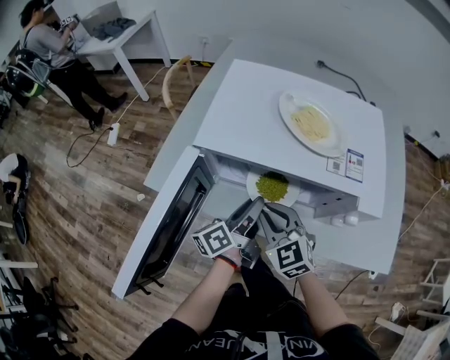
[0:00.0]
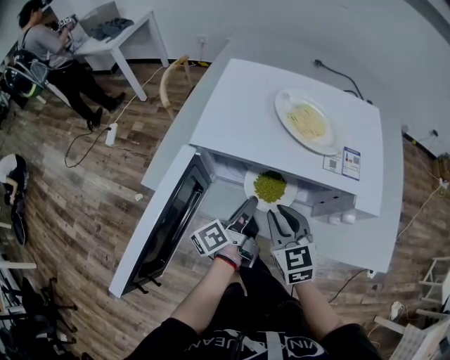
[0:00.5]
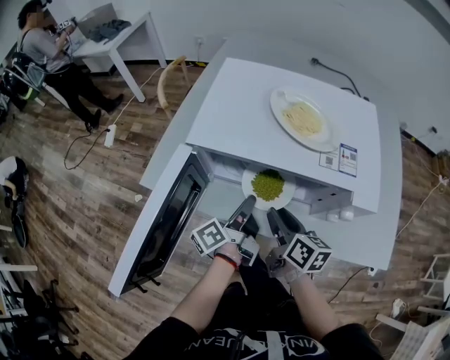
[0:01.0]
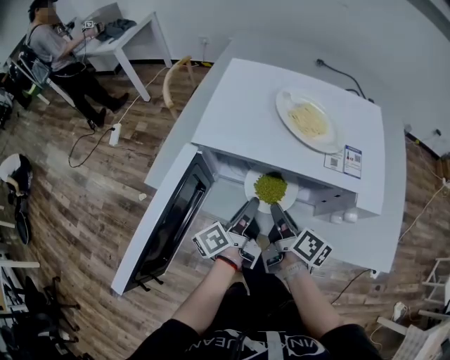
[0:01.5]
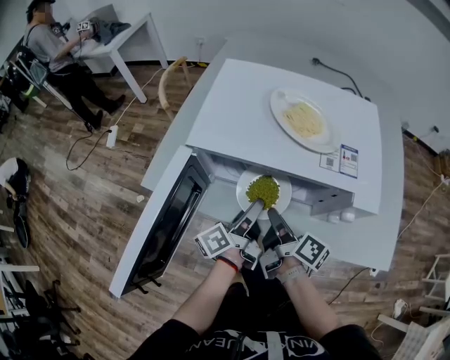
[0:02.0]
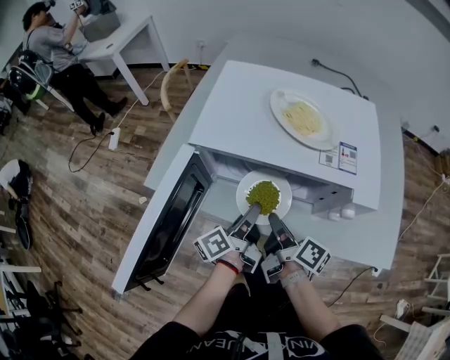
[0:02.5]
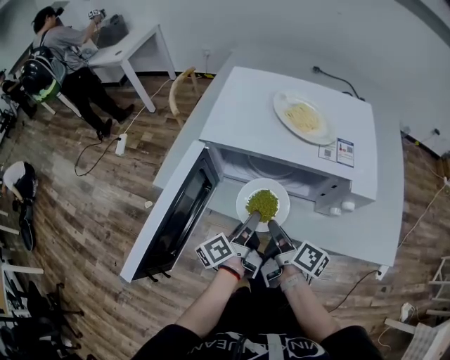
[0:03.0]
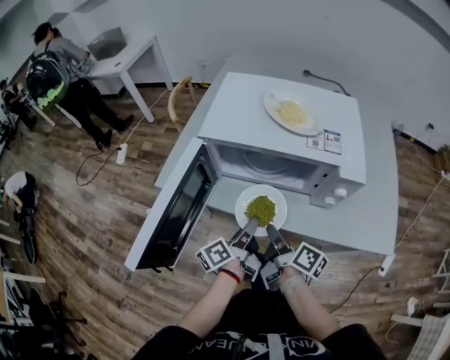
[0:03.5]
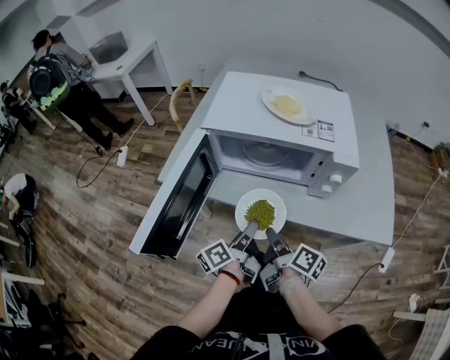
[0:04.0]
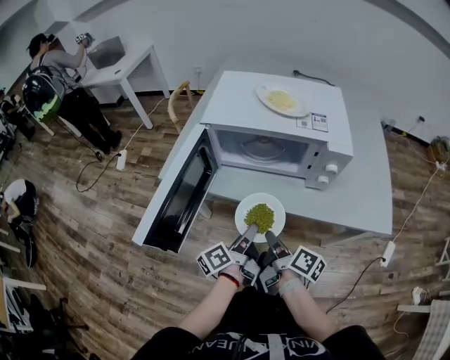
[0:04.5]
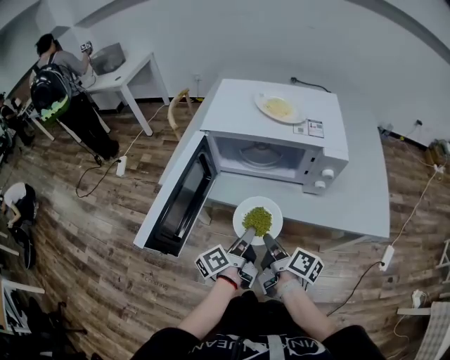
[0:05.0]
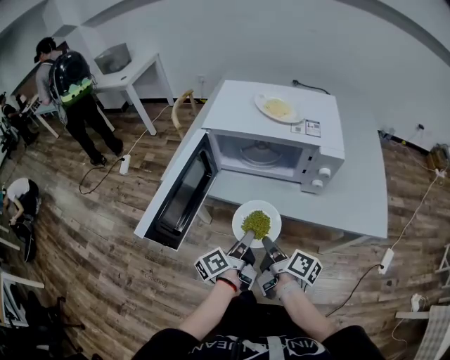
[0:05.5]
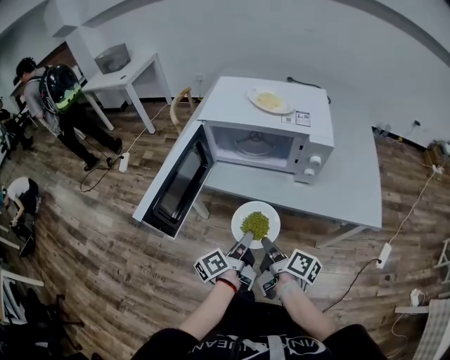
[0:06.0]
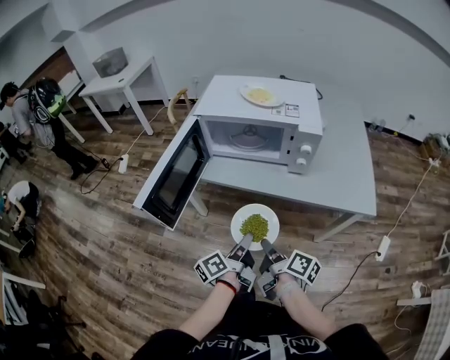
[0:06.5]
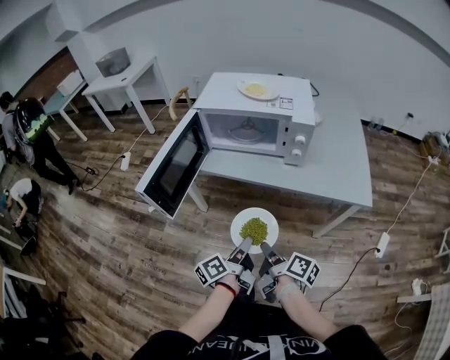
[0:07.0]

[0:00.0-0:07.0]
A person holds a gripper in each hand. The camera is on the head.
0.0 to 2.0 s: The right gripper moves to the right, approximately 5 cm, and rolls clockwise, seen from behind, by some 90 degrees, while the left gripper closes, then reopens.
2.0 to 3.5 s: The two grippers go roughly 10 cm backward. The left gripper closes.
3.5 to 5.0 s: Both grippers move backward, about 10 cm.
5.0 to 7.0 s: The grippers both shift backward by some 15 cm.

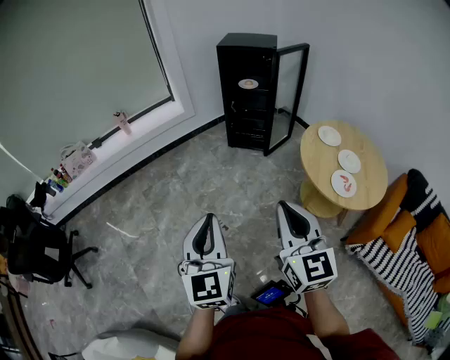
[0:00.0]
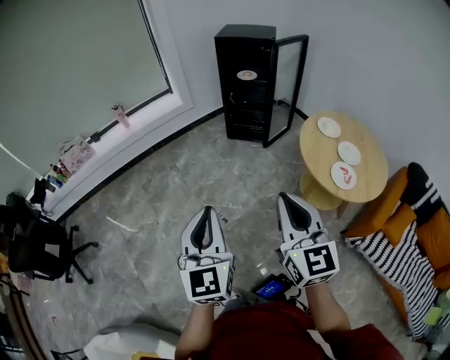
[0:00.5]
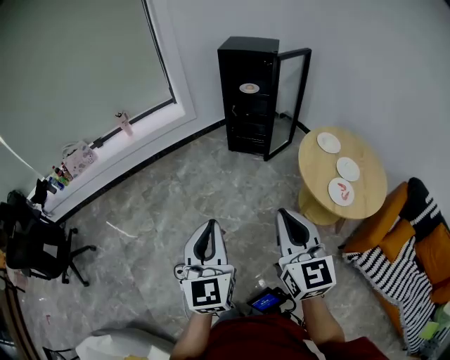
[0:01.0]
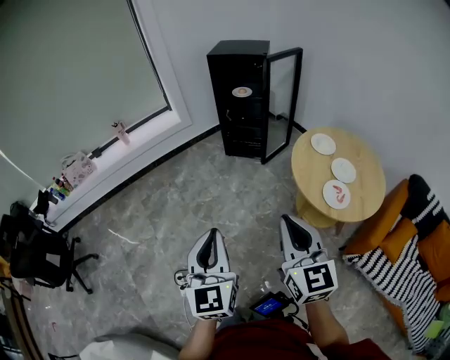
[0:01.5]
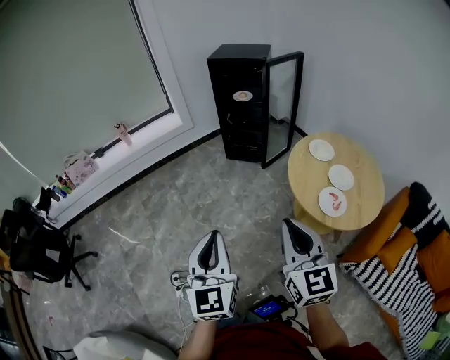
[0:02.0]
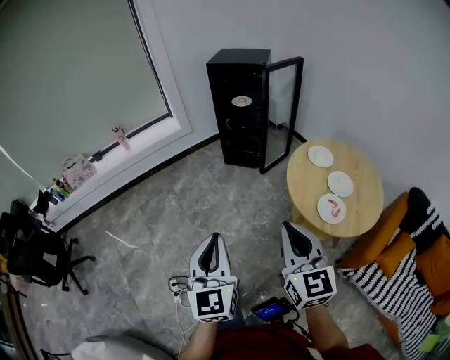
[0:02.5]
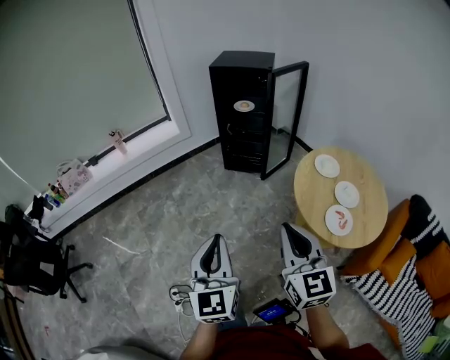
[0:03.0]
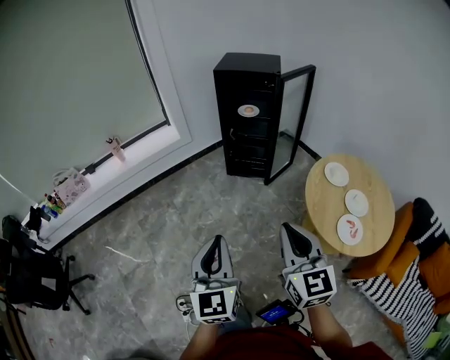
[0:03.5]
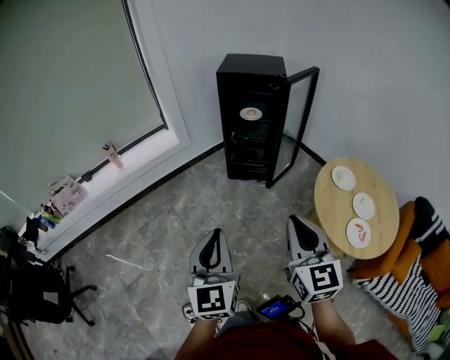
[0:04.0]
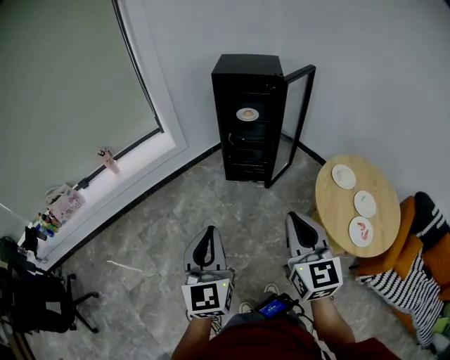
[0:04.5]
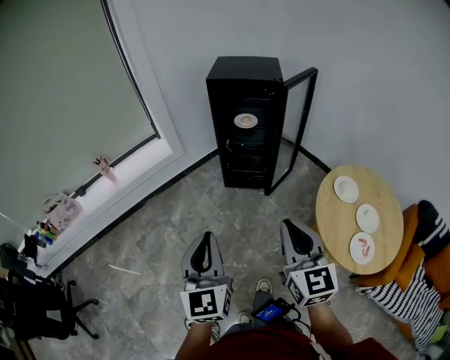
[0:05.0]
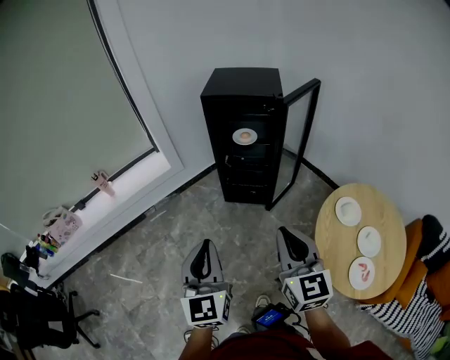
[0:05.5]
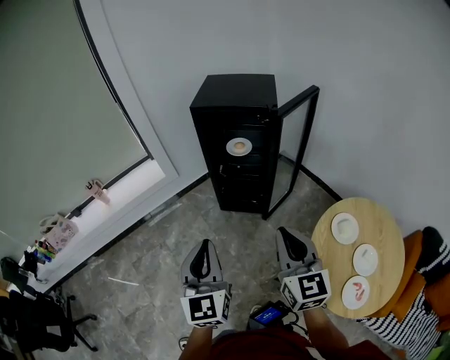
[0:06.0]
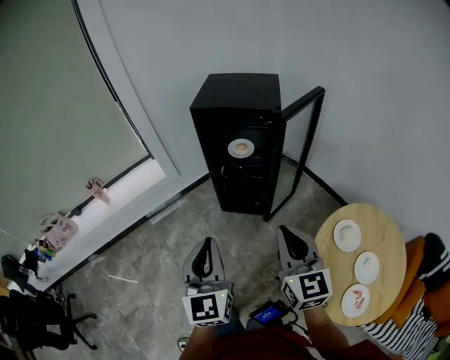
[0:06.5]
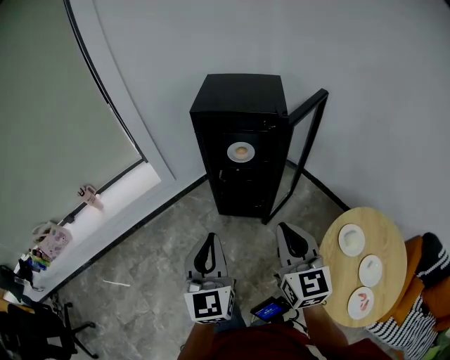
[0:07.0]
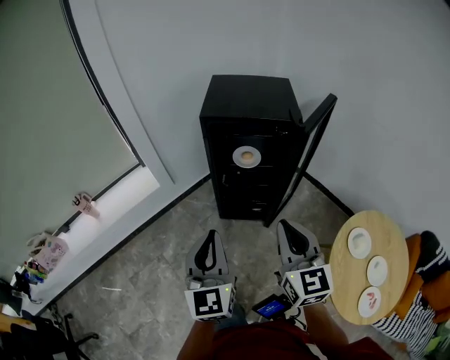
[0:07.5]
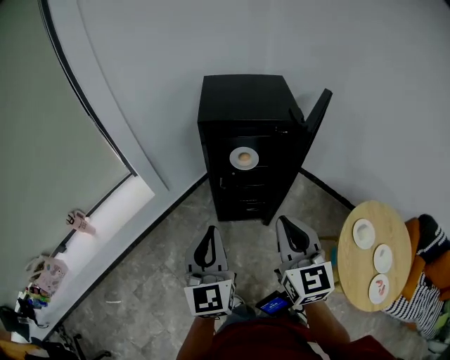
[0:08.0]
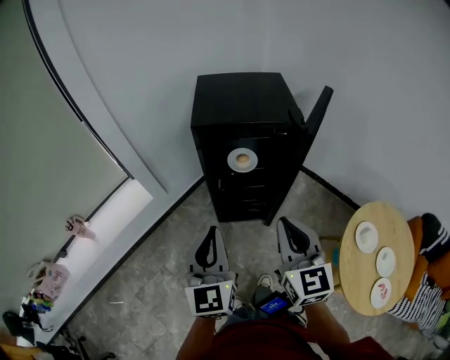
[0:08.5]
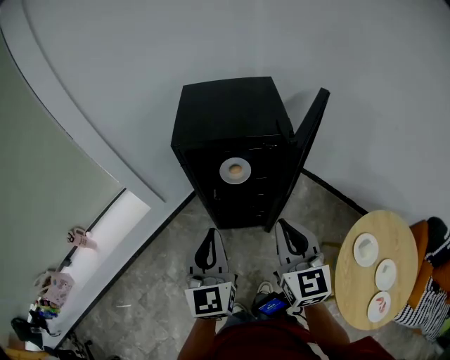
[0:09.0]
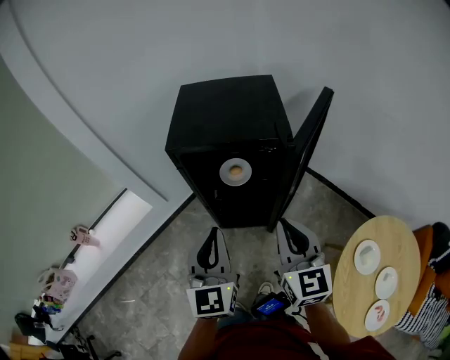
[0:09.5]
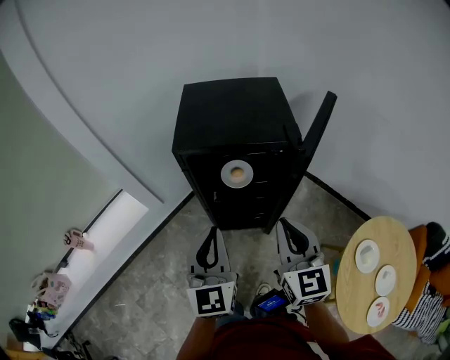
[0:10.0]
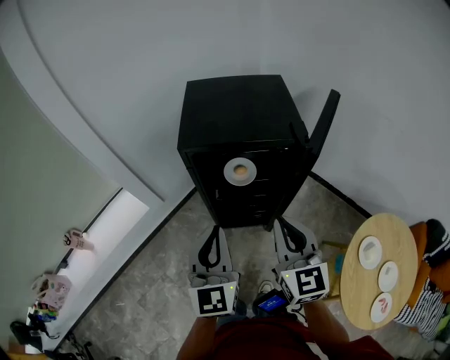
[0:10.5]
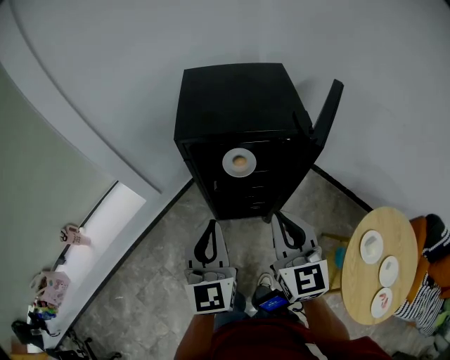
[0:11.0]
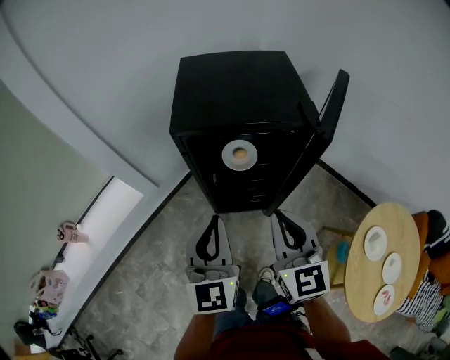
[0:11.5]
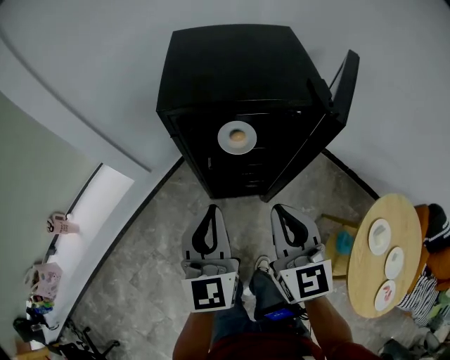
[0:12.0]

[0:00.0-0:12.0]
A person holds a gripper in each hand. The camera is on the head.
0.0 to 2.0 s: Both grippers travel together to the right, roughly 15 cm.
2.0 to 4.0 s: The grippers both shift forward and to the left by approximately 25 cm.
4.0 to 6.0 s: The two grippers go approximately 25 cm forward.
6.0 to 8.0 s: The grippers both shift forward and to the left by about 25 cm.
8.0 to 10.0 s: Both grippers travel together forward and to the right, roughly 15 cm.
10.0 to 12.0 s: The right gripper shifts about 10 cm downward and to the left. The left gripper heads downward, covering roughly 5 cm.

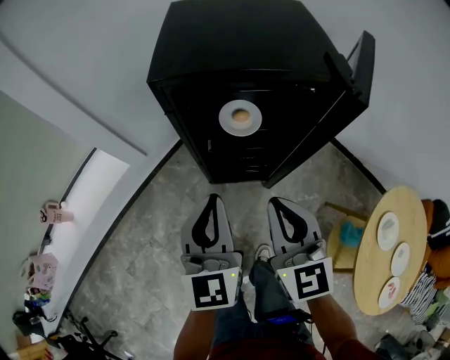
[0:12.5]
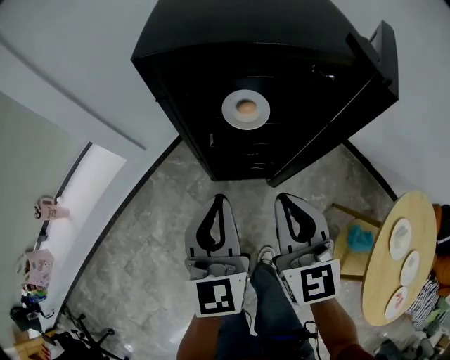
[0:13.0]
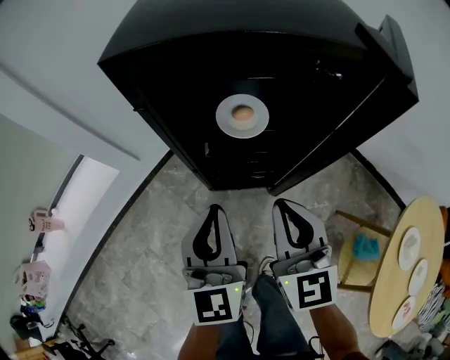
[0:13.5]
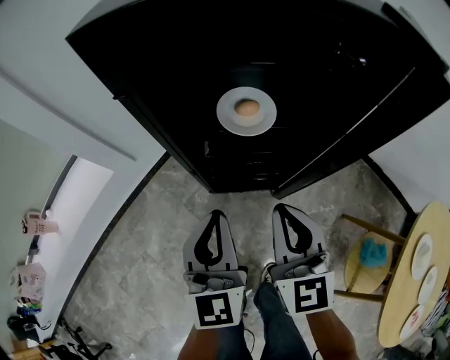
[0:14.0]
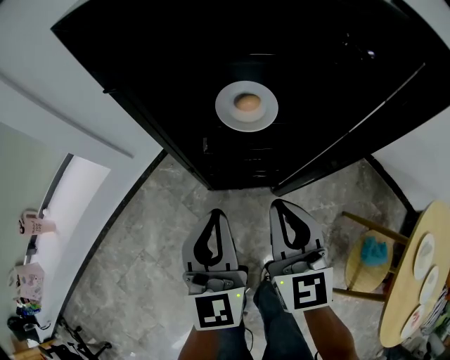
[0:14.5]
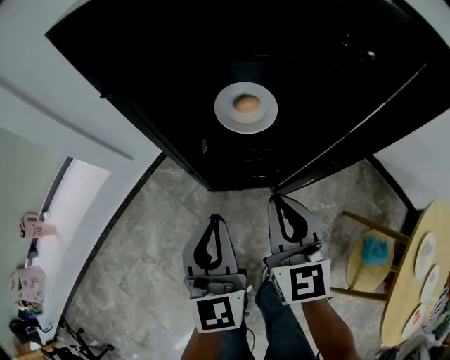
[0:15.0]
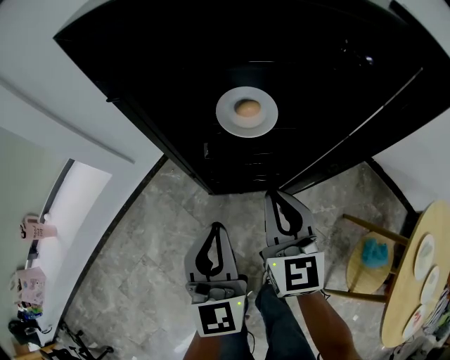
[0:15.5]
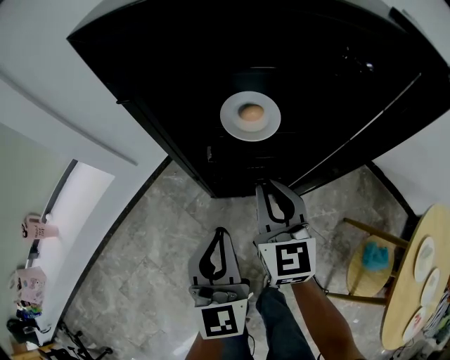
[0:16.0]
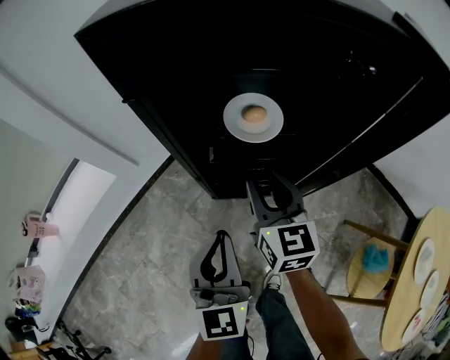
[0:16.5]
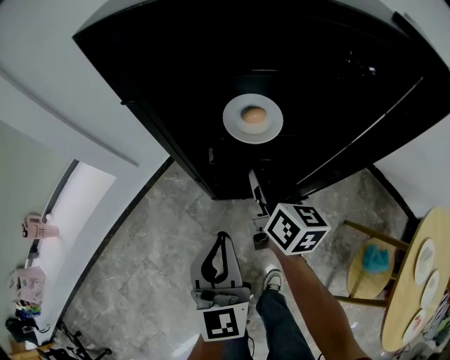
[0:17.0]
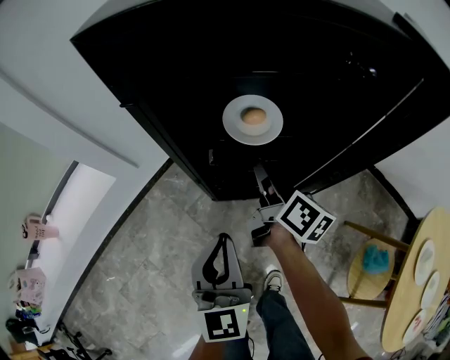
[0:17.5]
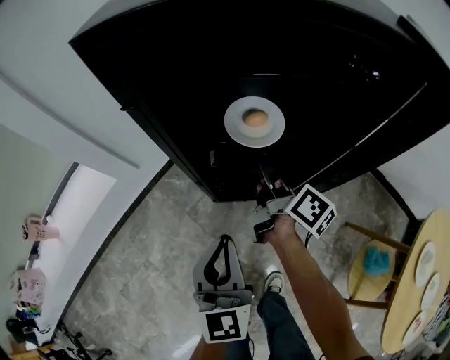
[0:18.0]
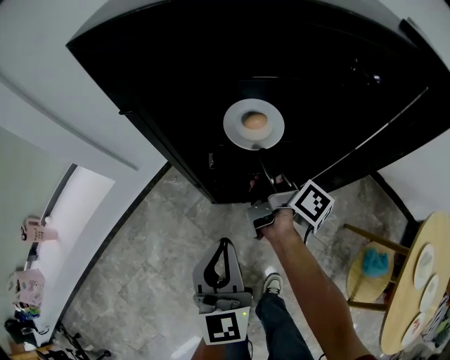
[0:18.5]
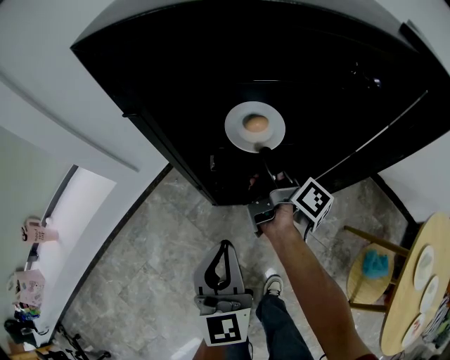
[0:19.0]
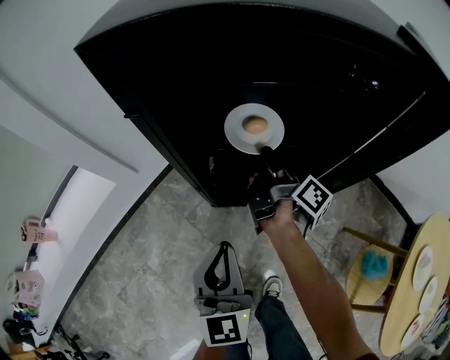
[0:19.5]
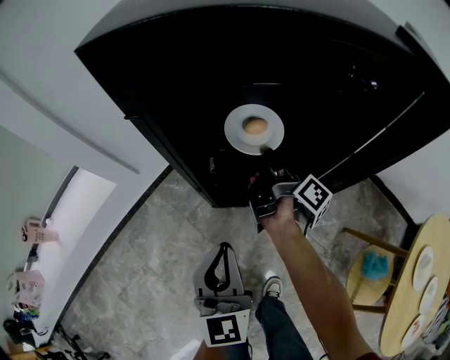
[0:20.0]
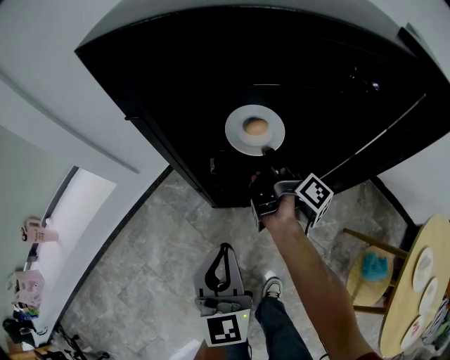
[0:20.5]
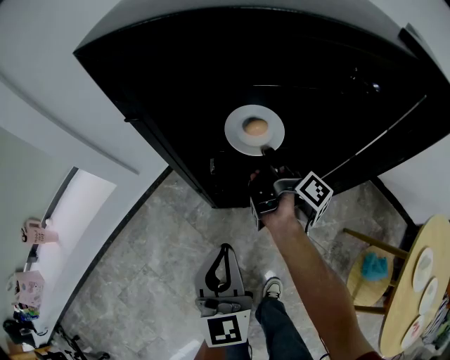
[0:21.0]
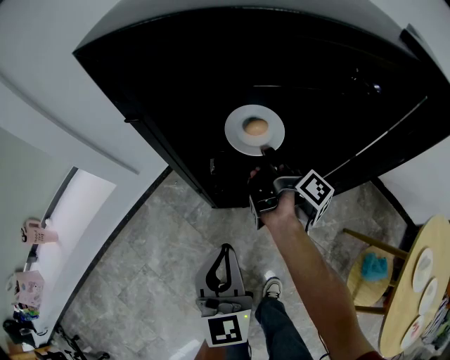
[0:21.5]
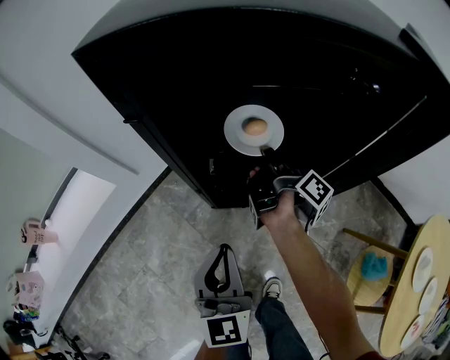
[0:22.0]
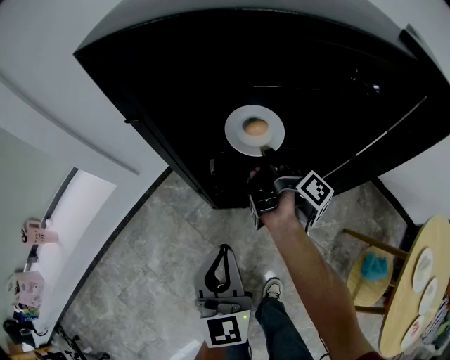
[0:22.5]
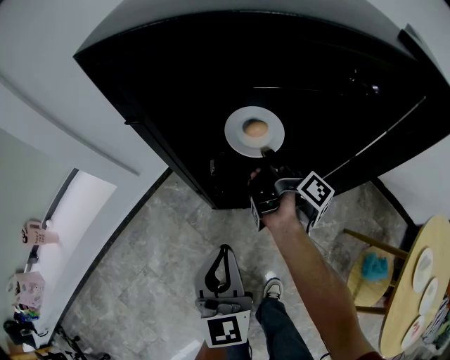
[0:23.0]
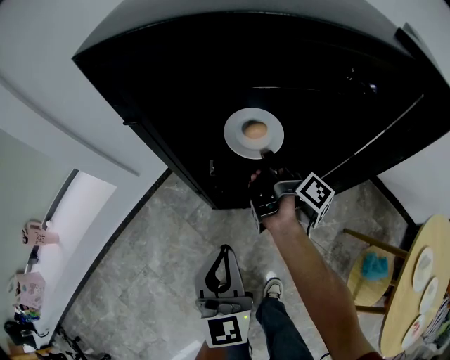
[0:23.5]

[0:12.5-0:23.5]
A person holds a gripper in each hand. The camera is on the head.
12.5 to 14.5 s: The left gripper travels downward by about 20 cm; the right gripper shifts some 20 cm downward and forward.
14.5 to 16.0 s: The right gripper heads forward, covering some 5 cm.
16.0 to 18.0 s: The right gripper is displaced forward and downward by approximately 10 cm, rotates around the line of its fingers by roughly 70 degrees, clockwise from behind, and opens.
18.0 to 20.0 s: The right gripper rotates about 20 degrees.
20.0 to 21.5 s: The right gripper closes.
21.5 to 23.5 s: The two grippers keep their place.
